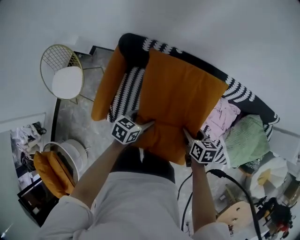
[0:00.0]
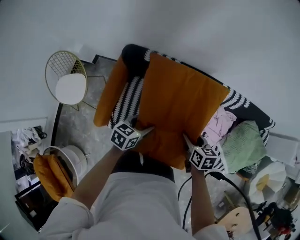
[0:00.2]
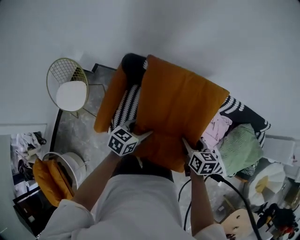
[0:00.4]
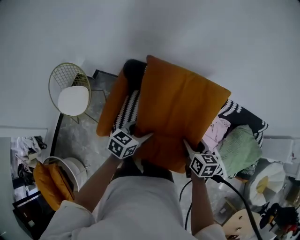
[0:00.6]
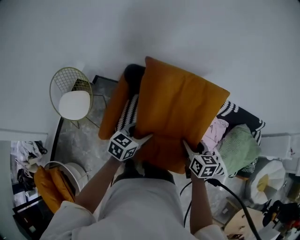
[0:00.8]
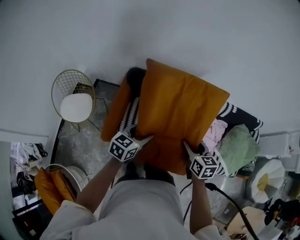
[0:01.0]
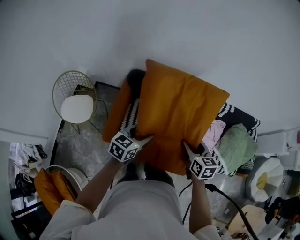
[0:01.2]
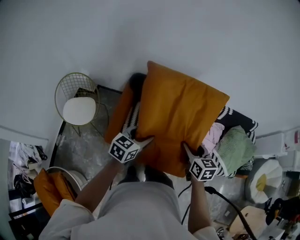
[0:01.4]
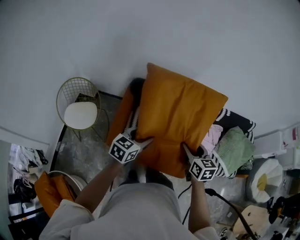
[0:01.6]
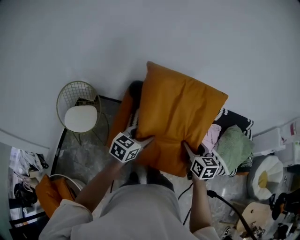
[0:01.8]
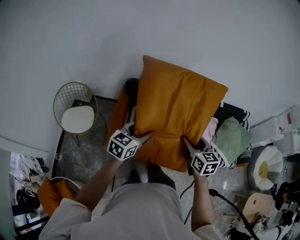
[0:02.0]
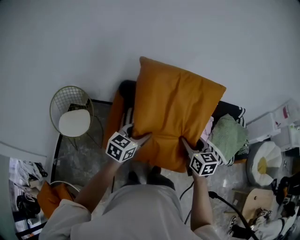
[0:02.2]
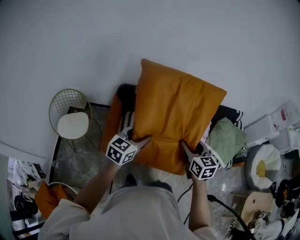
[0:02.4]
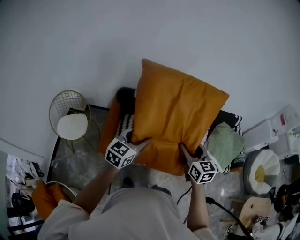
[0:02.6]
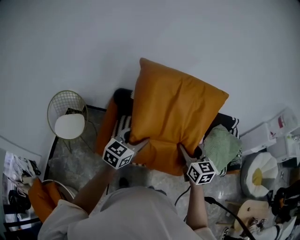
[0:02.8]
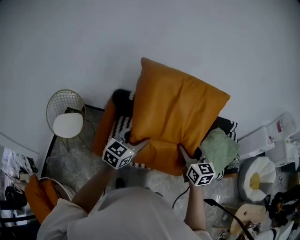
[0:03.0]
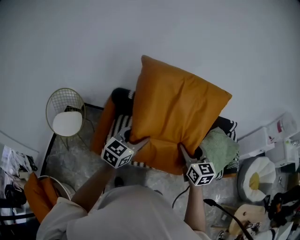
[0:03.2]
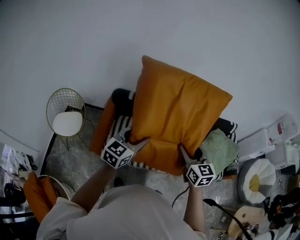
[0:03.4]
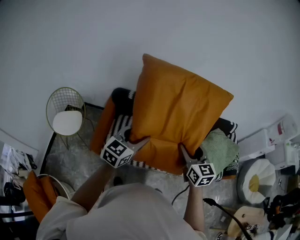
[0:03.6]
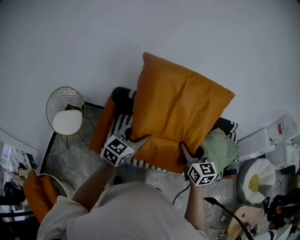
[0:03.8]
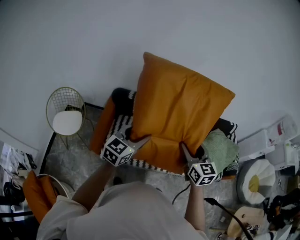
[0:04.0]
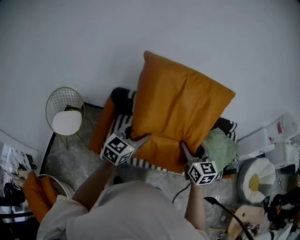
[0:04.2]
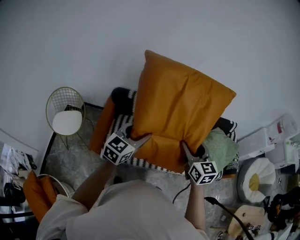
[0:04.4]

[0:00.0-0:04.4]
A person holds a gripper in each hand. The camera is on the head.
0:00.0 to 0:01.4: The two grippers go about 30 cm upward and backward. The right gripper turns by roughly 30 degrees, while the left gripper changes its angle by about 20 degrees.
0:01.4 to 0:03.0: The left gripper shifts about 20 cm upward, to the right and backward; the right gripper travels to the right, upward and backward by roughly 20 cm.
0:03.0 to 0:04.4: The grippers move only a little.

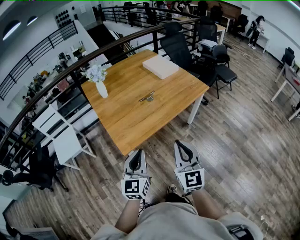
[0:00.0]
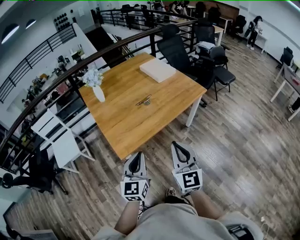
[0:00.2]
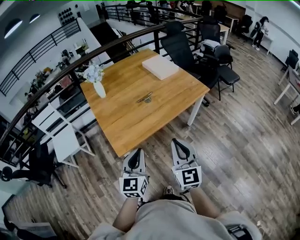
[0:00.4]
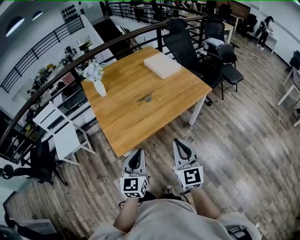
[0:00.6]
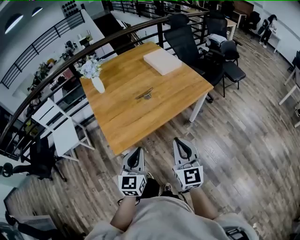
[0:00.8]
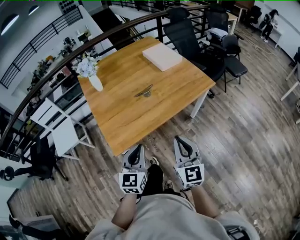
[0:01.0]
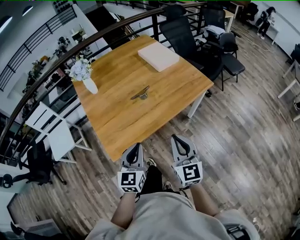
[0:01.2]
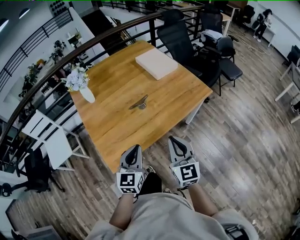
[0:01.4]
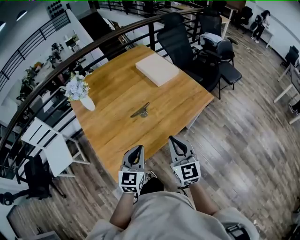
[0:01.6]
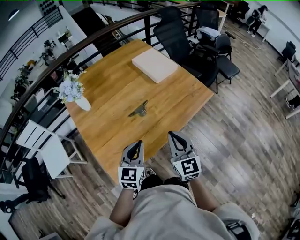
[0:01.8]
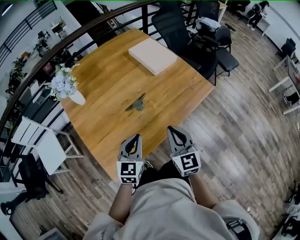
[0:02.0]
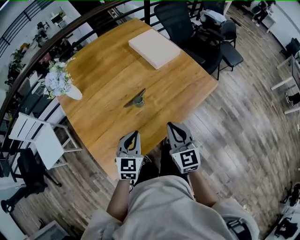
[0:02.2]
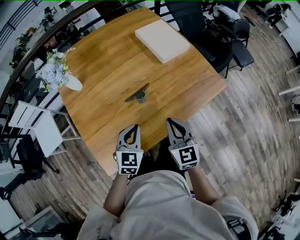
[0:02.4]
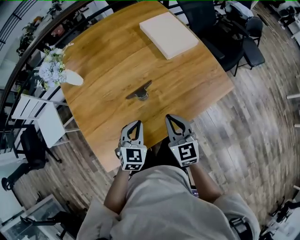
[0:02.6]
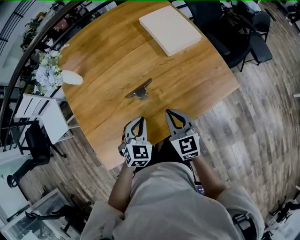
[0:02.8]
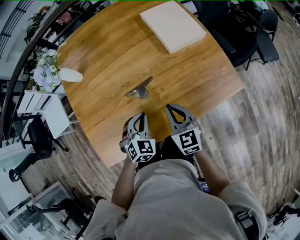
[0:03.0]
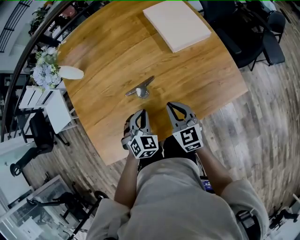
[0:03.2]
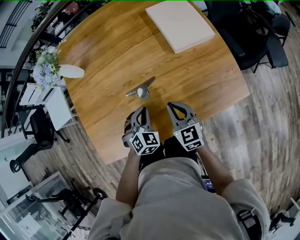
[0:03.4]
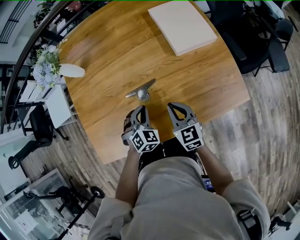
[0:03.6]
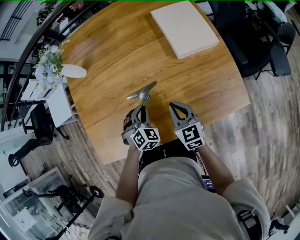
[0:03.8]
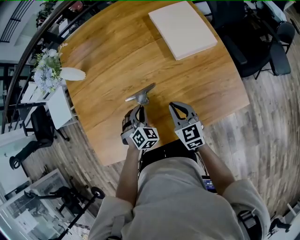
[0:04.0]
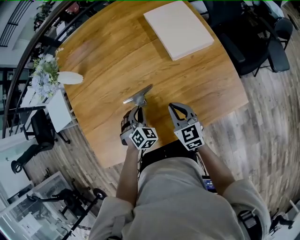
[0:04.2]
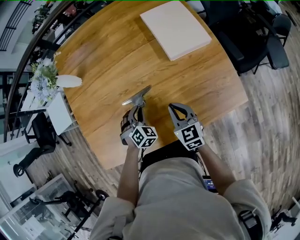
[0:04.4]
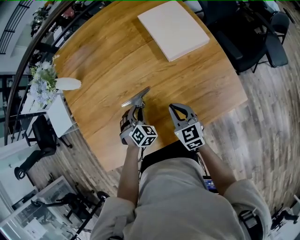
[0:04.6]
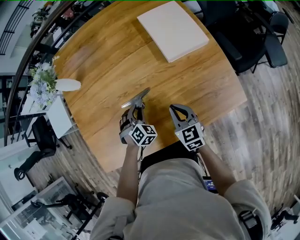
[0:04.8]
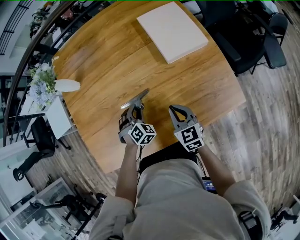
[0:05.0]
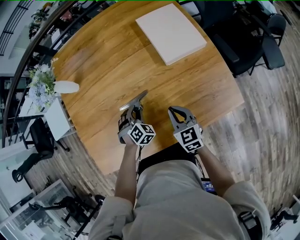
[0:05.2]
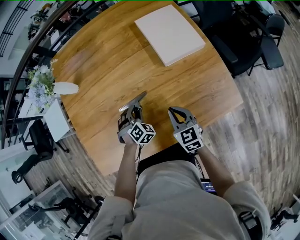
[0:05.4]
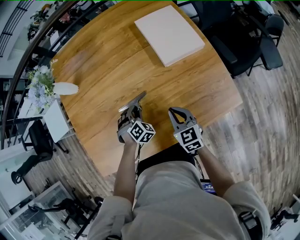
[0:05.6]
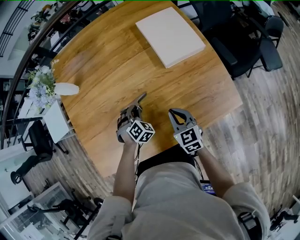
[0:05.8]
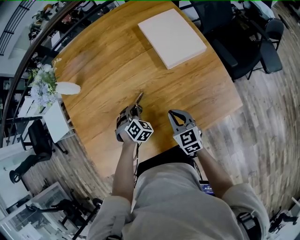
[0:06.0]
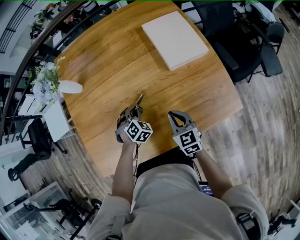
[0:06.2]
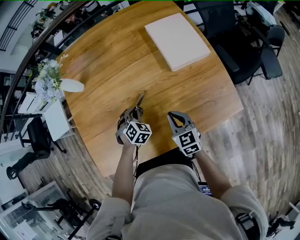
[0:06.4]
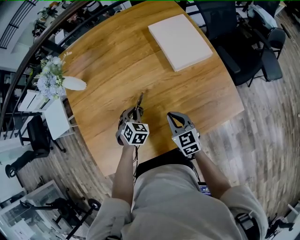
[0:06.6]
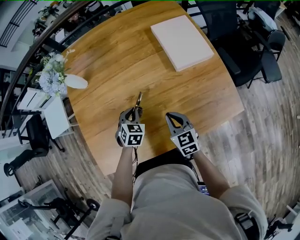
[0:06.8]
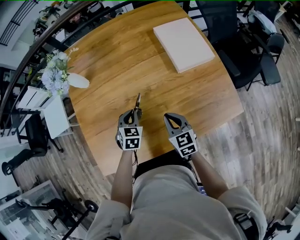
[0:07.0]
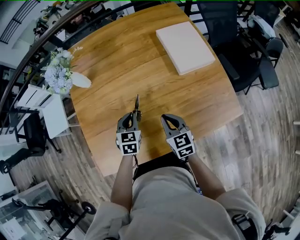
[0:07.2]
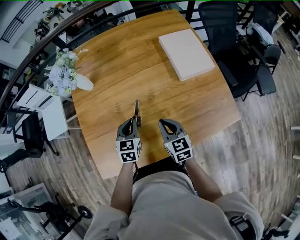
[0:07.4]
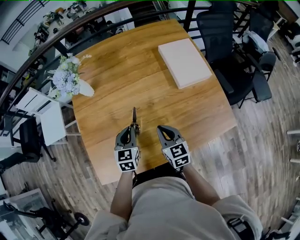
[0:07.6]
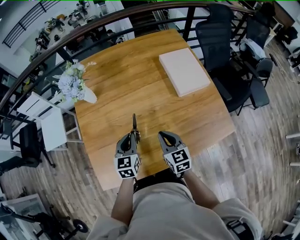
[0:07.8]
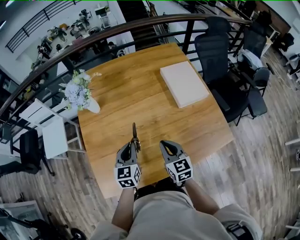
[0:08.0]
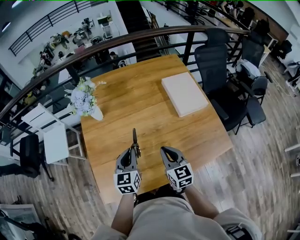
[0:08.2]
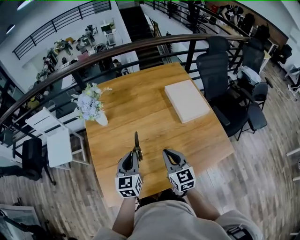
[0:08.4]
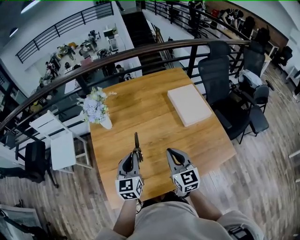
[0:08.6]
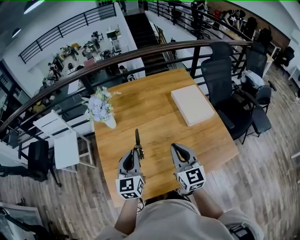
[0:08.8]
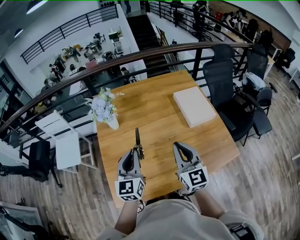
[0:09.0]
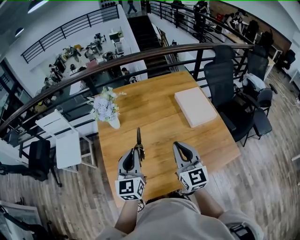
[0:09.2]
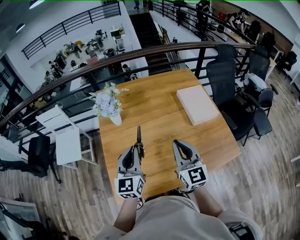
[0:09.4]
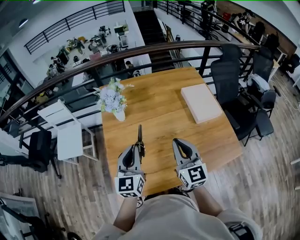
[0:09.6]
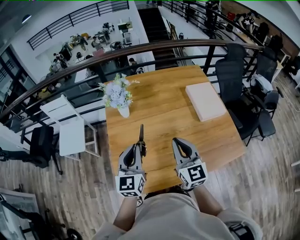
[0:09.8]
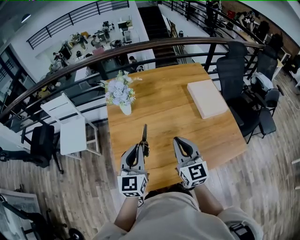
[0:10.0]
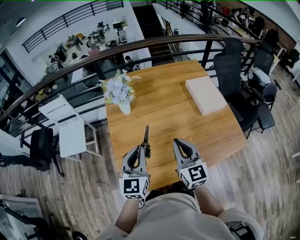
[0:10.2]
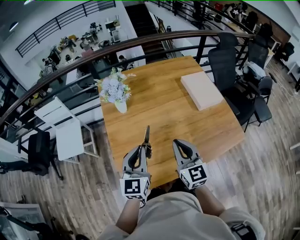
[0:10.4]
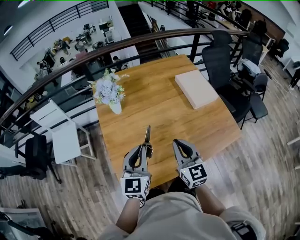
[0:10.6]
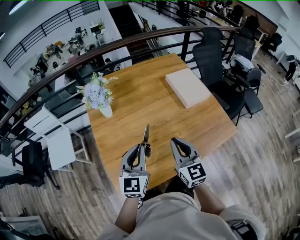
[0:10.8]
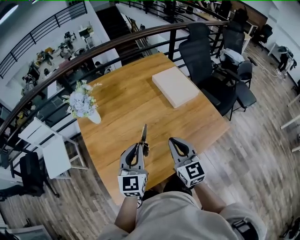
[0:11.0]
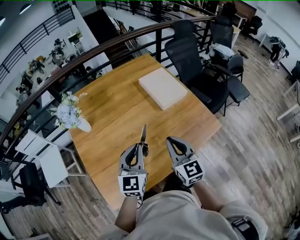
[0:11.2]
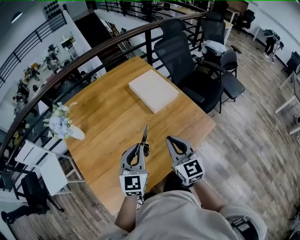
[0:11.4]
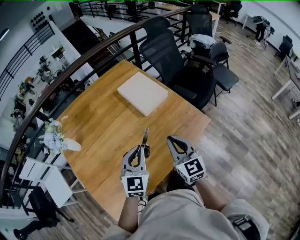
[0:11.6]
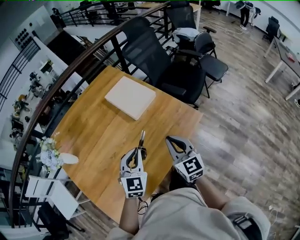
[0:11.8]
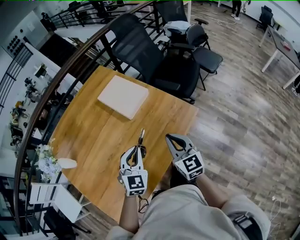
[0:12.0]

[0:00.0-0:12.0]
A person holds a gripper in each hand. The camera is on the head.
0:00.0 to 0:01.6: The two grippers go roughly 25 cm forward.
0:01.6 to 0:03.0: Both grippers travel together forward and downward, roughly 25 cm. The left gripper turns by about 40 degrees. Meanwhile the right gripper rotates approximately 30 degrees.
0:03.0 to 0:04.4: The right gripper moves downward, to the right and forward, approximately 10 cm; the left gripper moves downward and forward, approximately 15 cm.
0:04.4 to 0:06.0: There are only small adjustments of the grippers.
0:06.0 to 0:07.6: The left gripper goes roughly 15 cm upward and to the left, and rolls counterclockwise, seen from behind, by some 50 degrees. The right gripper shifts roughly 15 cm to the left and upward.
0:07.6 to 0:09.0: The grippers both shift upward by approximately 20 cm. The left gripper turns by about 30 degrees. Meanwhile the right gripper changes its angle by approximately 30 degrees.
0:09.0 to 0:10.4: The right gripper moves to the left, roughly 10 cm. The left gripper heads to the left and backward, covering approximately 10 cm.
0:10.4 to 0:12.0: The left gripper shifts by approximately 35 cm, and turns by some 40 degrees. Meanwhile the right gripper shifts by about 35 cm, and swivels some 30 degrees.

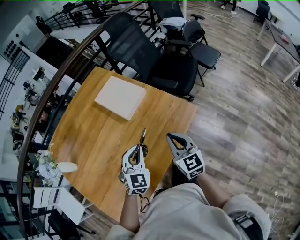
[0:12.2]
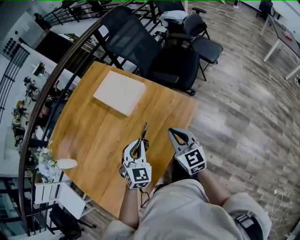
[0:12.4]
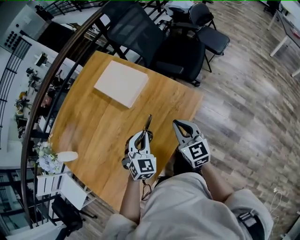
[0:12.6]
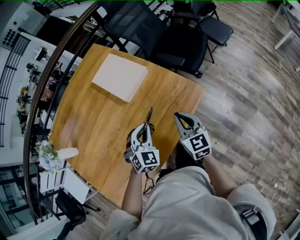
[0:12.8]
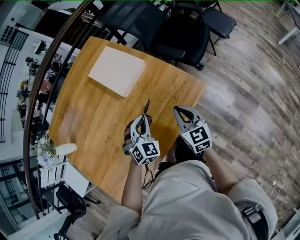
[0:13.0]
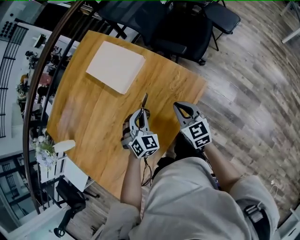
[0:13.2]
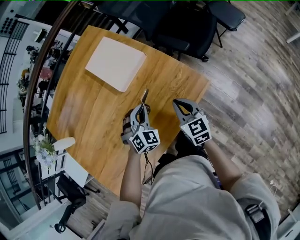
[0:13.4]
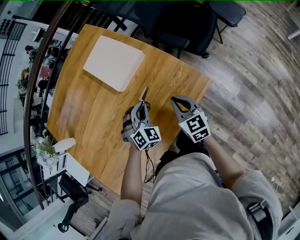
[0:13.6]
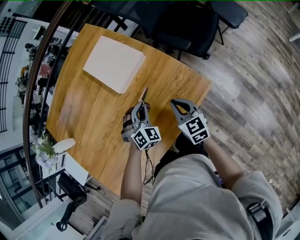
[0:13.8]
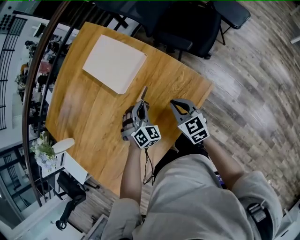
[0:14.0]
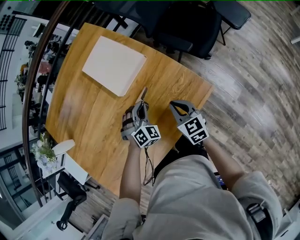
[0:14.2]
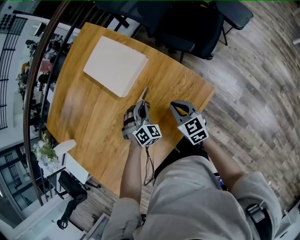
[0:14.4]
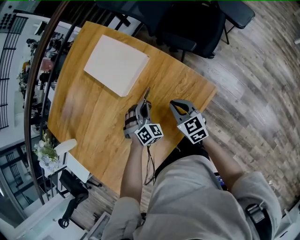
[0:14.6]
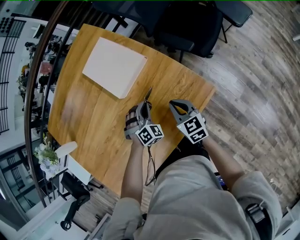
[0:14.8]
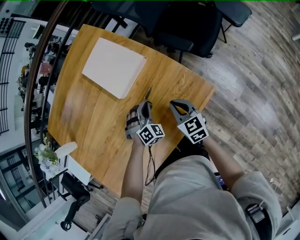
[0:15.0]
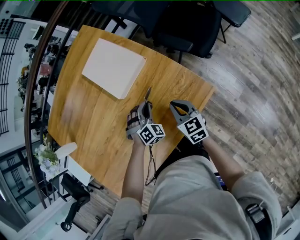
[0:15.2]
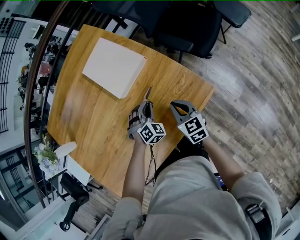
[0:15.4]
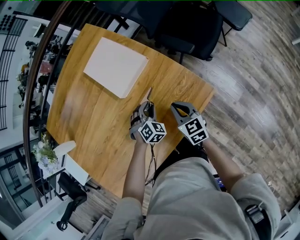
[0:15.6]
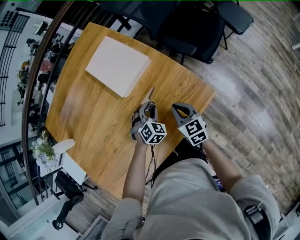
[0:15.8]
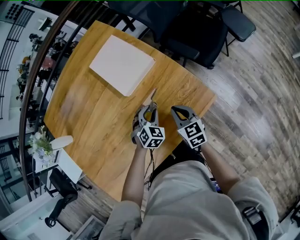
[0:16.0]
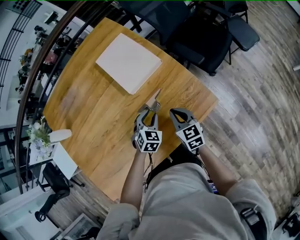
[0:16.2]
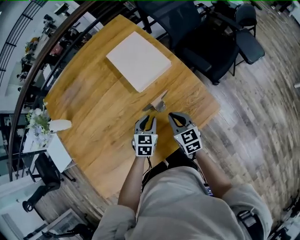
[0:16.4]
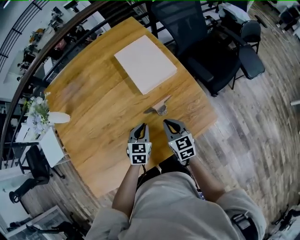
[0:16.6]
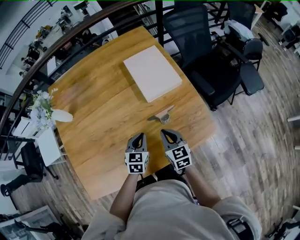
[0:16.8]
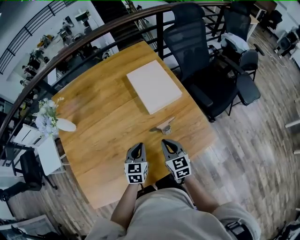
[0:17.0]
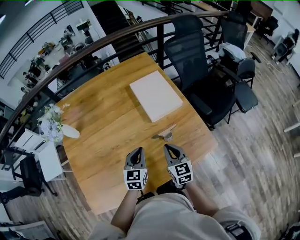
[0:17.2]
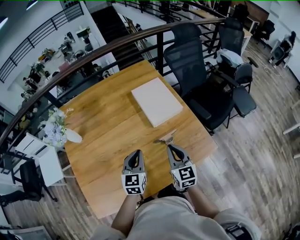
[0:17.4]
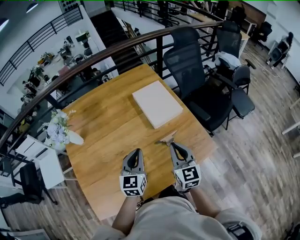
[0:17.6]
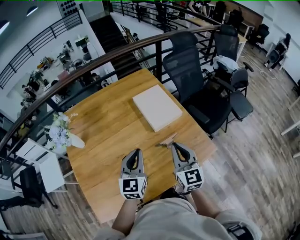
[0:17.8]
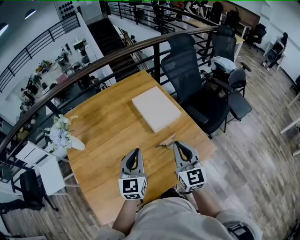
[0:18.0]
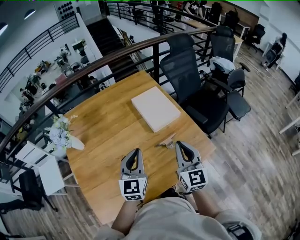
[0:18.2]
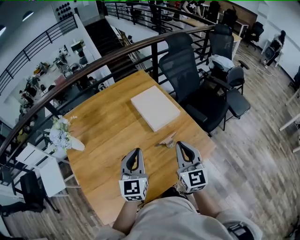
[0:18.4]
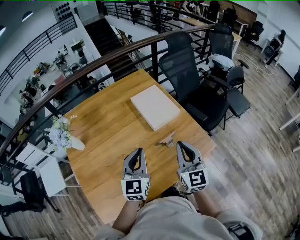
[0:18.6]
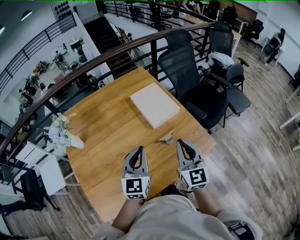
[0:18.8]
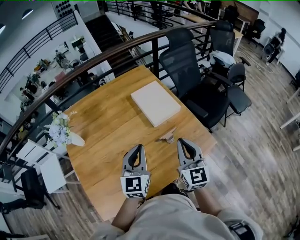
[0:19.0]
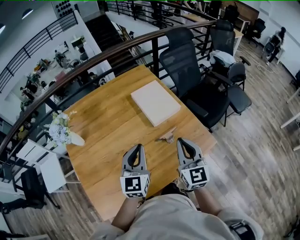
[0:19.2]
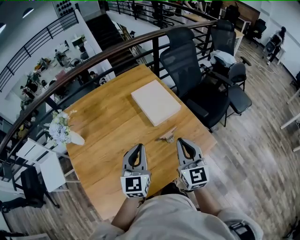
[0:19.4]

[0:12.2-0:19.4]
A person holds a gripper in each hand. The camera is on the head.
0:12.2 to 0:13.6: The left gripper travels downward, forward and to the right by approximately 20 cm, and changes its angle by some 30 degrees, while the right gripper travels downward and forward by approximately 20 cm.
0:13.6 to 0:15.0: The right gripper shifts by approximately 5 cm, while the left gripper shifts some 5 cm downward.
0:15.0 to 0:16.6: The left gripper is displaced to the left, backward and upward by about 15 cm, twists some 60 degrees counterclockwise, seen from behind, and opens, then closes again; the right gripper heads to the left, covering approximately 10 cm.
0:16.6 to 0:18.0: The grippers both shift upward by approximately 25 cm. The right gripper changes its angle by about 30 degrees; the left gripper angles its fingers upward, by approximately 30 degrees.
0:18.0 to 0:19.4: There are only small adjustments of the grippers.
